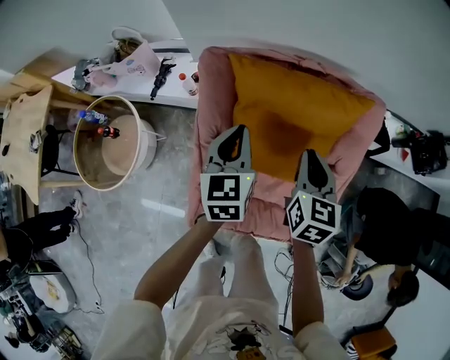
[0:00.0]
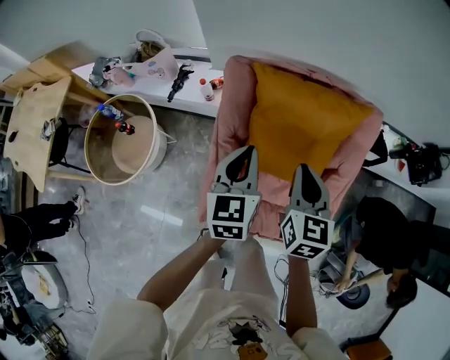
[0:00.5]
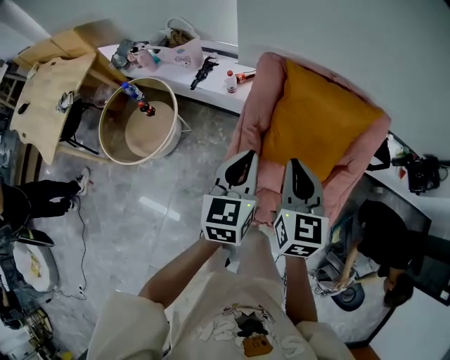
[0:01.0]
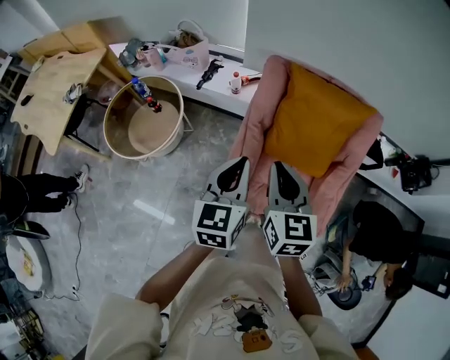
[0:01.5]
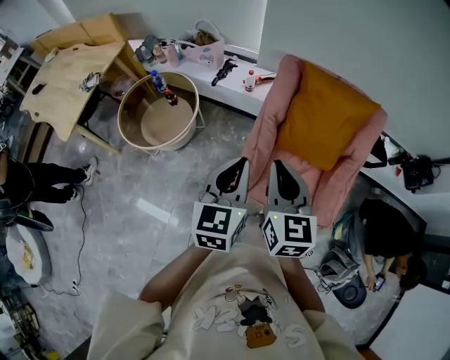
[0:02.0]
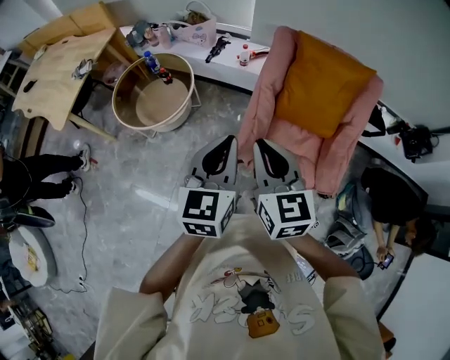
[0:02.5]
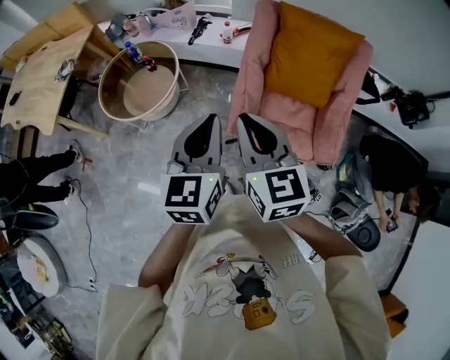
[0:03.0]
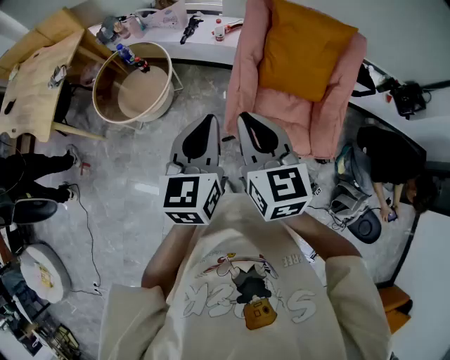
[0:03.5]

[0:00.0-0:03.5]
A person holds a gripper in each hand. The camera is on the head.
0:00.0 to 0:02.0: The pair of grippers is taken backward and to the left, roughly 40 cm. Both grippers move upward, about 20 cm. The right gripper rotates approximately 20 degrees.
0:02.0 to 0:03.5: The right gripper travels backward and to the left by about 10 cm; the left gripper shifts some 10 cm backward.

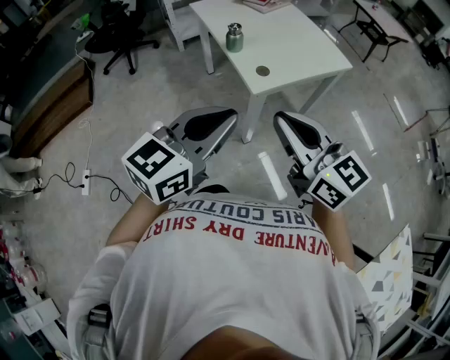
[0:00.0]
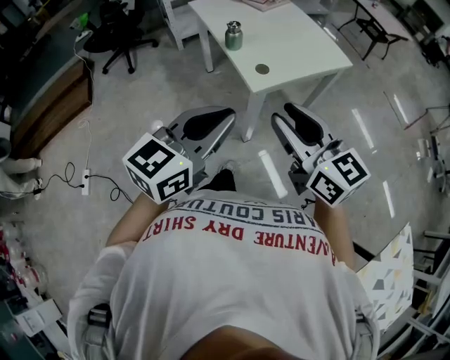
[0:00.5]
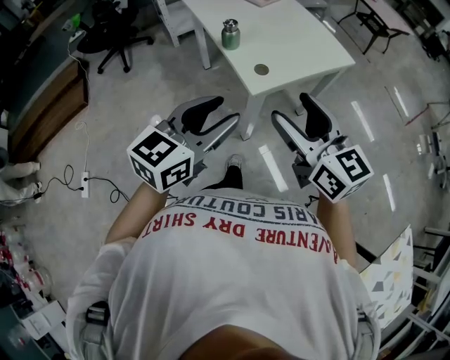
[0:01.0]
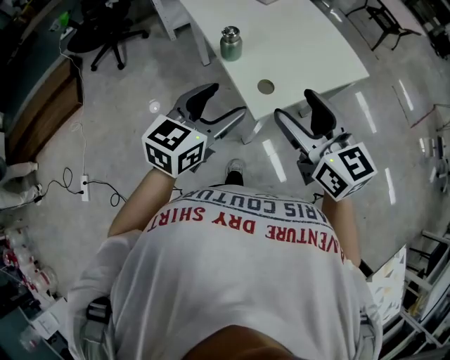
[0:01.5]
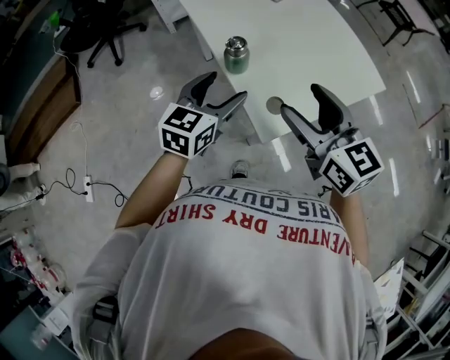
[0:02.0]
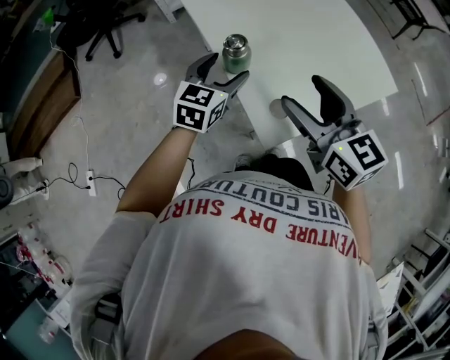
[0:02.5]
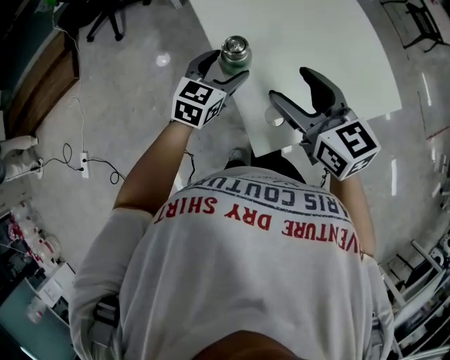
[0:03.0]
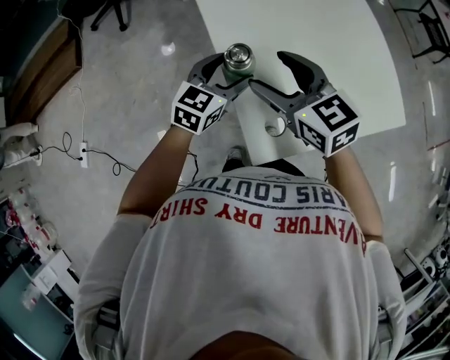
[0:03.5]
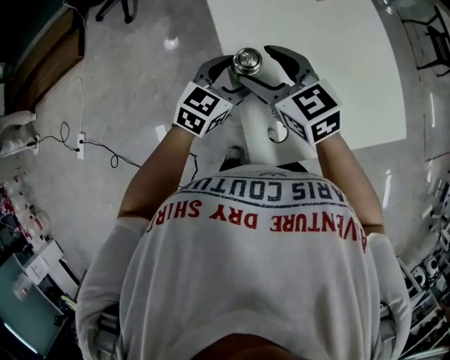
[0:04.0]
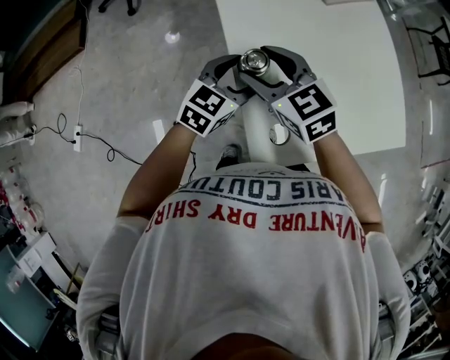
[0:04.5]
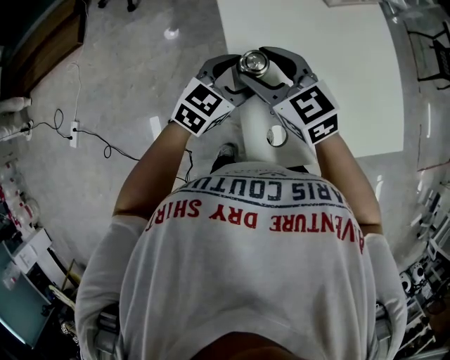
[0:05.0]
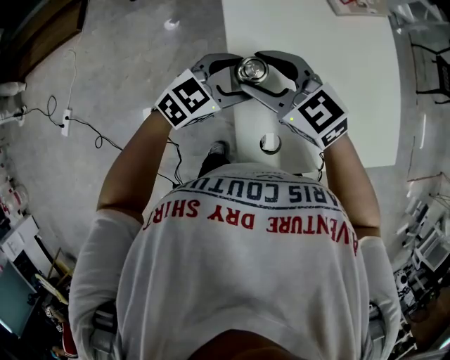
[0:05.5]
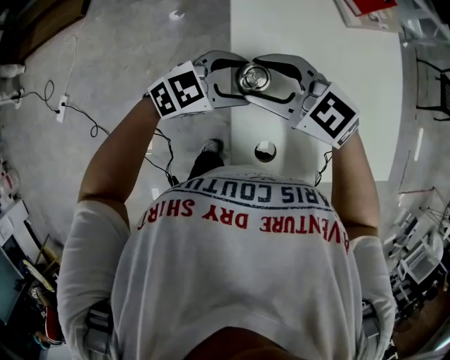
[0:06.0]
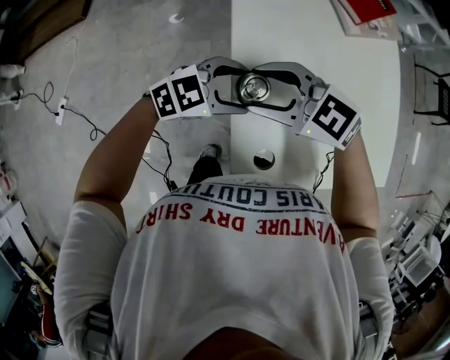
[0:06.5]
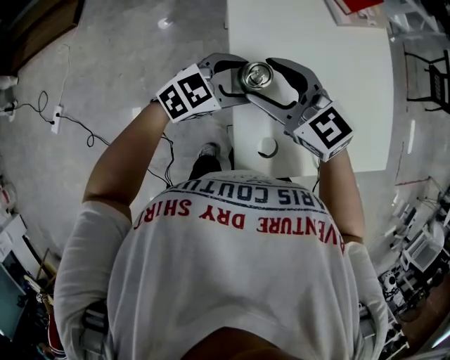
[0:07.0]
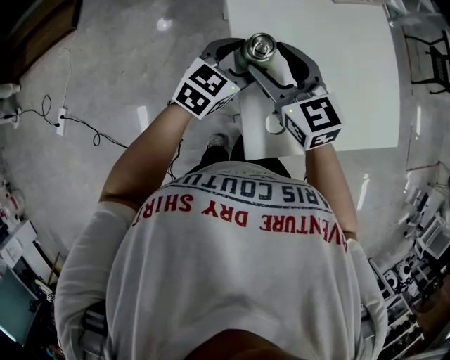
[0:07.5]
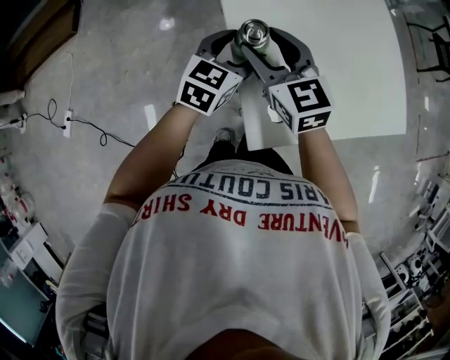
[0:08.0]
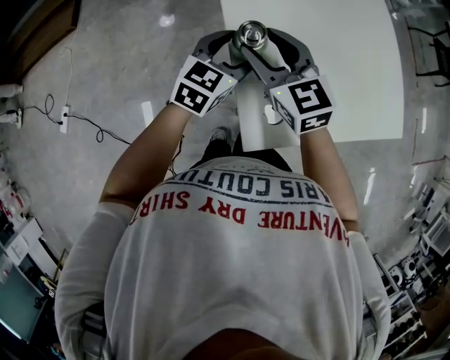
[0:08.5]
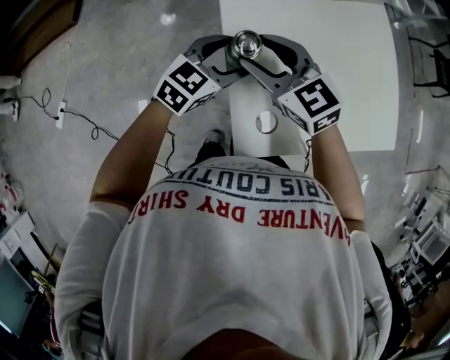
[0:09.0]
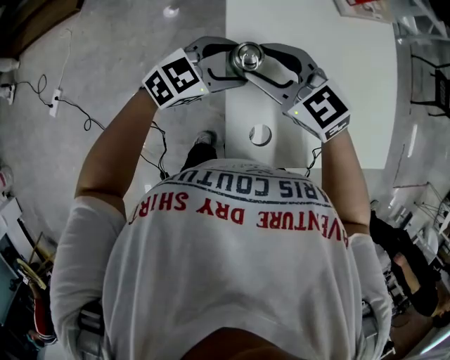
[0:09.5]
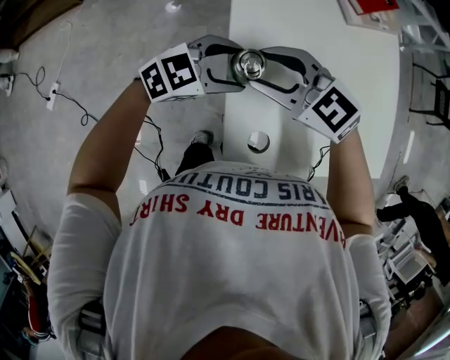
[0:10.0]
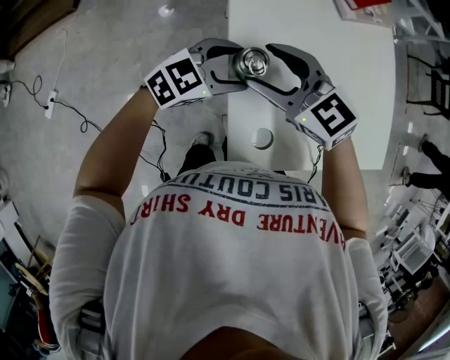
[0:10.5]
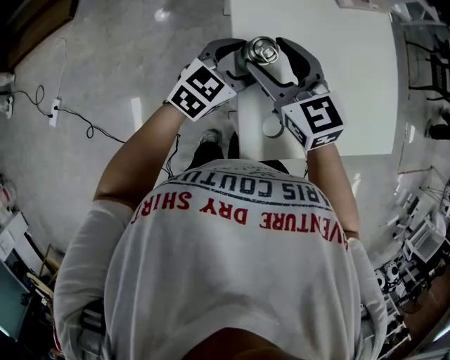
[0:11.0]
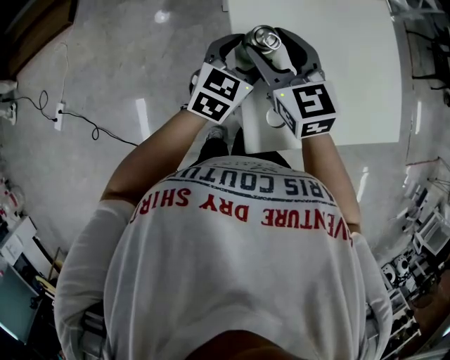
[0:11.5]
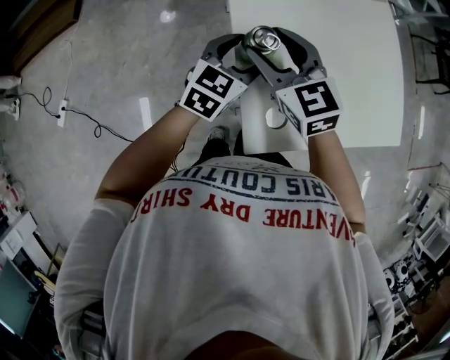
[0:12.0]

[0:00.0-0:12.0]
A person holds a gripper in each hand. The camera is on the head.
0:00.0 to 0:02.0: The left gripper shifts roughly 40 cm forward and downward, and opens its fingers, while the right gripper travels forward by about 30 cm, and opens its fingers.
0:02.0 to 0:04.0: The right gripper heads forward, downward and to the left, covering approximately 20 cm, and turns by about 30 degrees; the left gripper is displaced forward and downward by some 15 cm.
0:04.0 to 0:06.0: The left gripper turns by about 20 degrees, while the right gripper rotates approximately 40 degrees.
0:06.0 to 0:08.0: The right gripper rotates approximately 50 degrees, while the left gripper rotates about 30 degrees.
0:08.0 to 0:10.0: The right gripper rotates about 50 degrees. Meanwhile the left gripper turns by some 30 degrees.
0:10.0 to 0:12.0: The left gripper rotates roughly 30 degrees, while the right gripper turns by approximately 40 degrees.

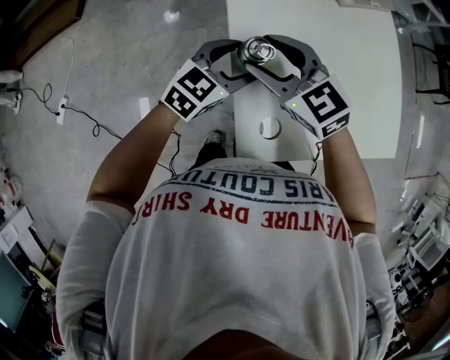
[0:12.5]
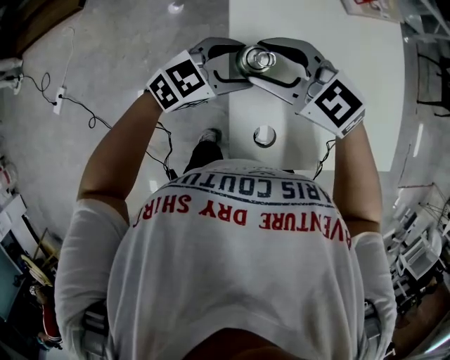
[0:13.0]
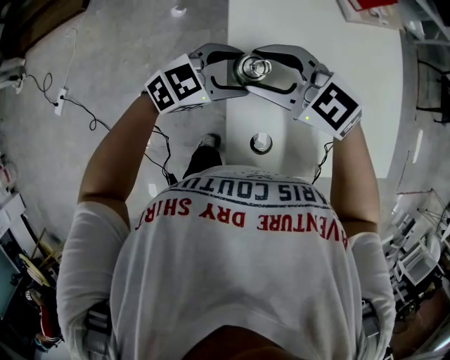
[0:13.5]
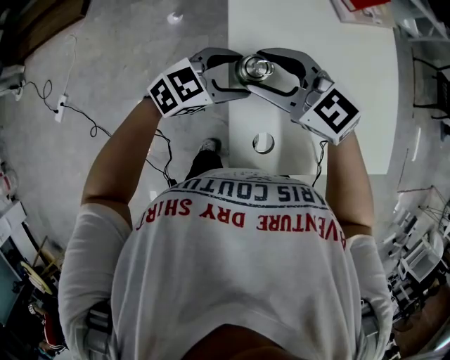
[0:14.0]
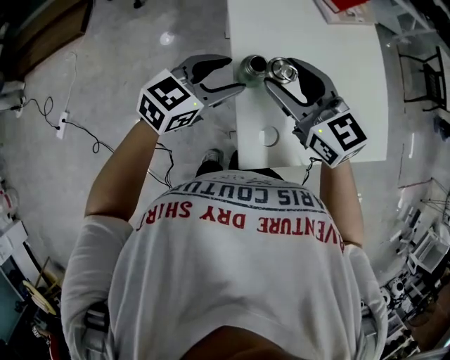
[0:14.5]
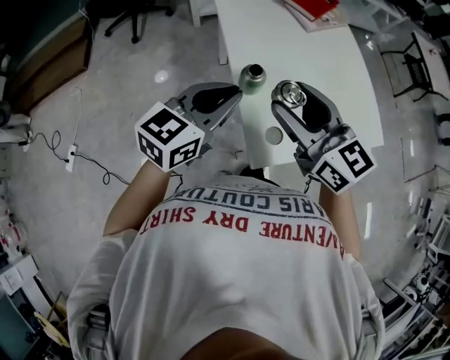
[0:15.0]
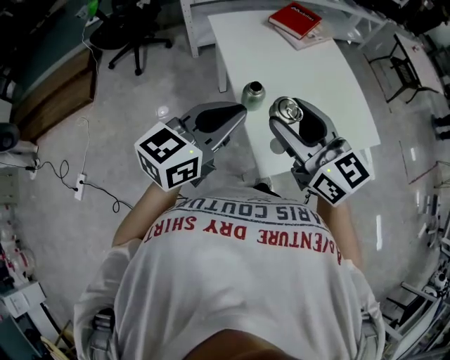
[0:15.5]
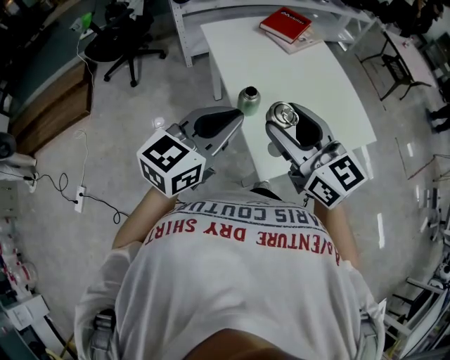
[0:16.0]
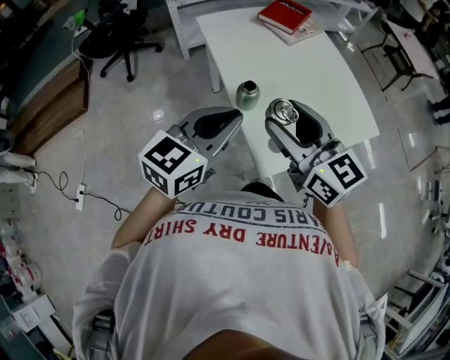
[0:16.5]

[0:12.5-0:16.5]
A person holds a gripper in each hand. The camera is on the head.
0:12.5 to 0:14.5: Both grippers travel together upward, about 5 cm.
0:14.5 to 0:16.5: The left gripper goes approximately 15 cm upward and backward, and closes. Meanwhile the right gripper is displaced backward and upward by some 15 cm, and swivels some 20 degrees.

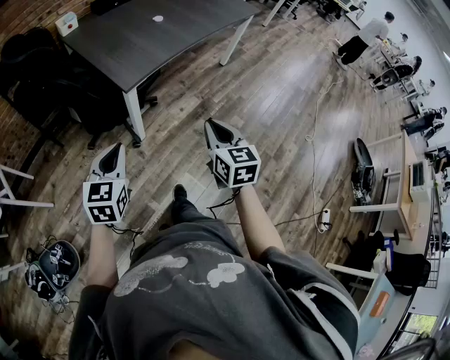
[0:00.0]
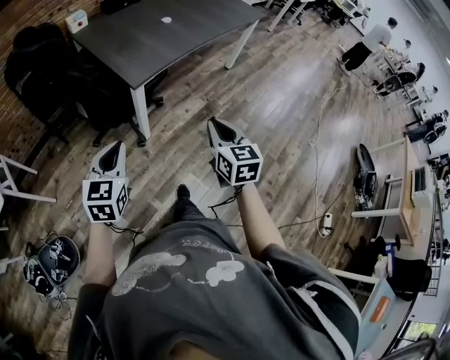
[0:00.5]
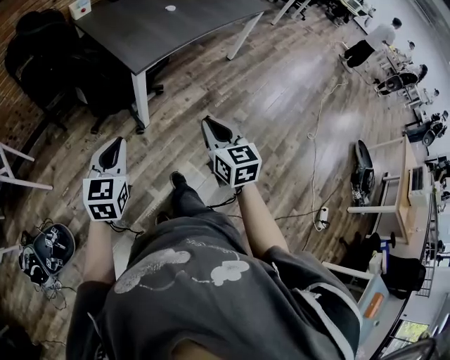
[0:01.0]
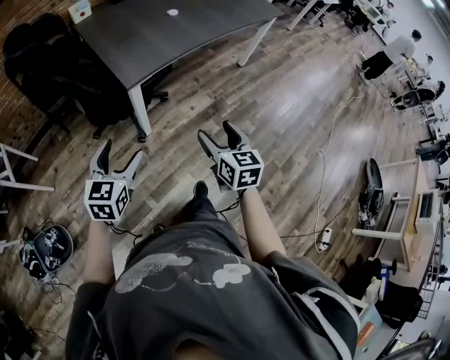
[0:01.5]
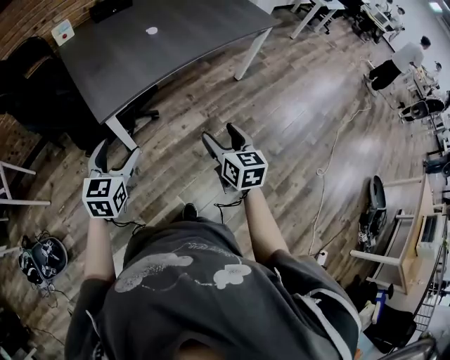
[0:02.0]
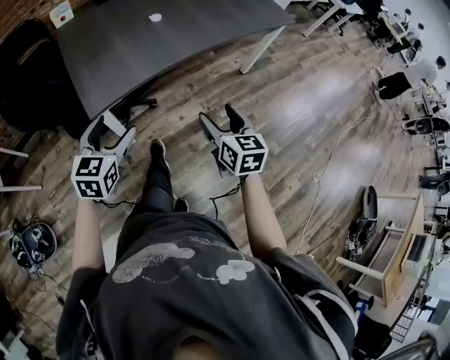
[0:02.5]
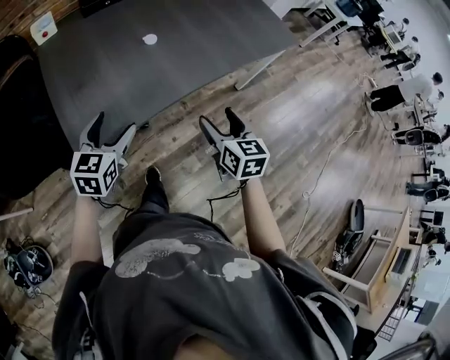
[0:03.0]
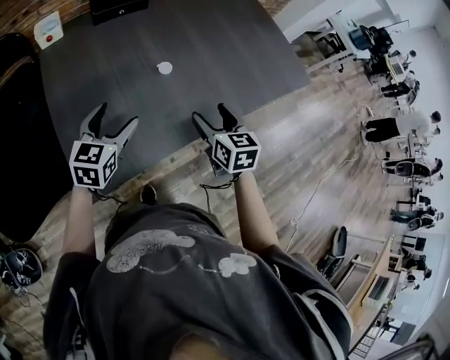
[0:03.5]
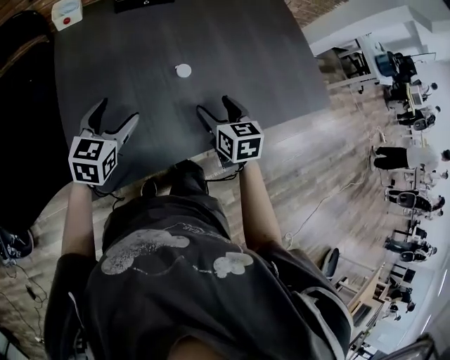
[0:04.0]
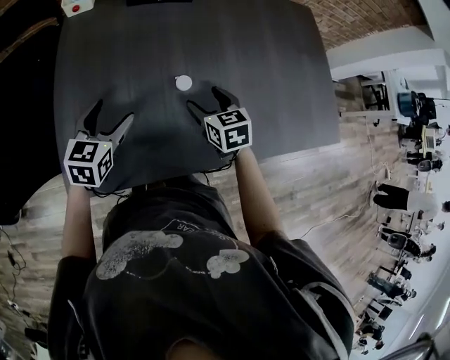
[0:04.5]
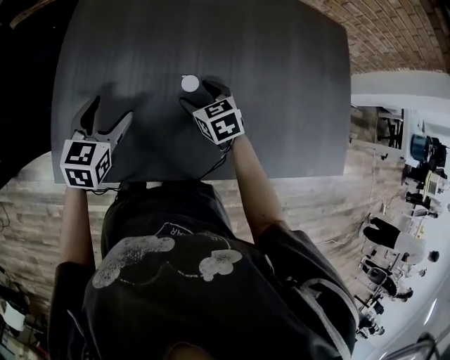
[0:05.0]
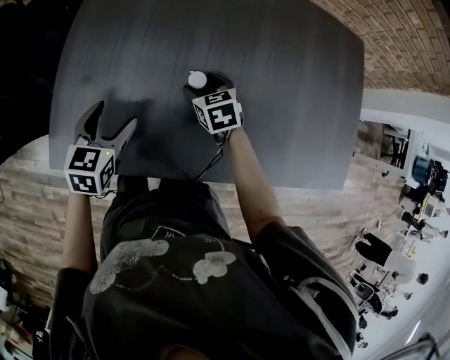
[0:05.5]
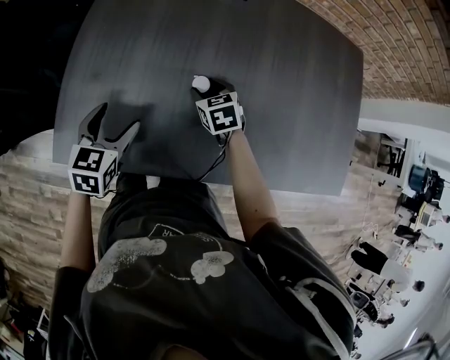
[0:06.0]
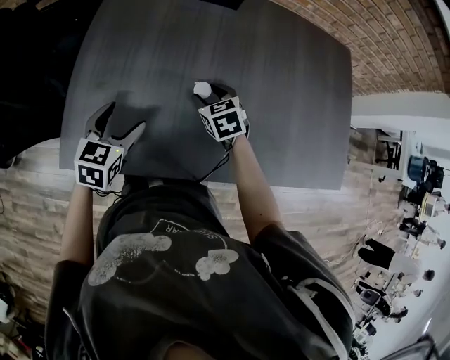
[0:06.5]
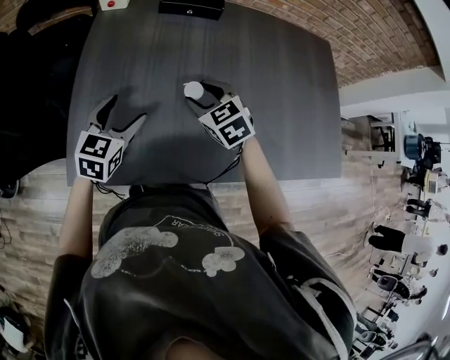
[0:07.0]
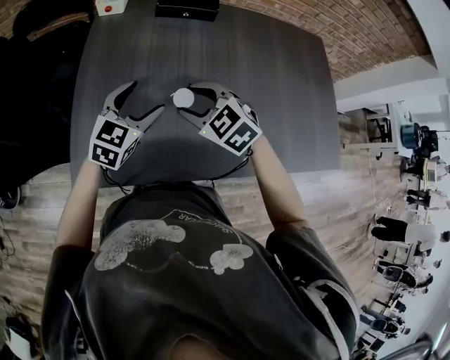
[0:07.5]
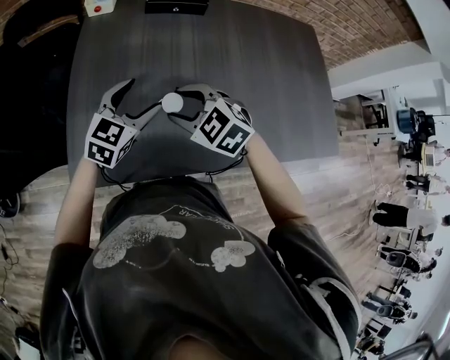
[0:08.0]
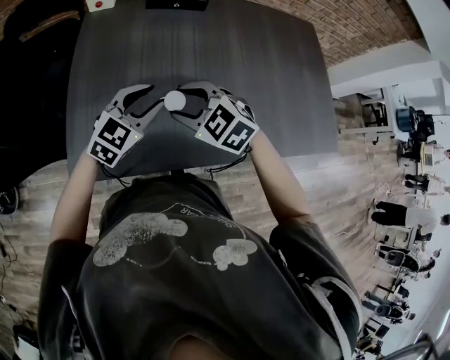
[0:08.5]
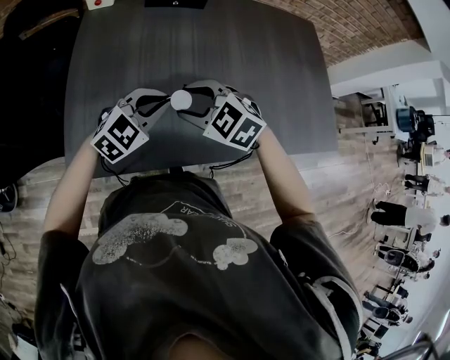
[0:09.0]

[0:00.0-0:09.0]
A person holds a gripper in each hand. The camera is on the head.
0:00.0 to 0:02.0: Both grippers move forward and to the right, approximately 25 cm. The left gripper opens, while the right gripper opens up.
0:02.0 to 0:04.5: The pair of grippers is taken about 60 cm. The right gripper turns by about 40 degrees, while the left gripper swivels some 20 degrees.
0:04.5 to 0:07.0: The right gripper travels to the left and upward by roughly 10 cm, and rotates approximately 30 degrees.
0:07.0 to 0:09.0: The right gripper shifts approximately 10 cm backward, and swivels approximately 20 degrees. Meanwhile the left gripper moves to the right and backward, approximately 10 cm, swivels approximately 40 degrees, and closes its fingers.
